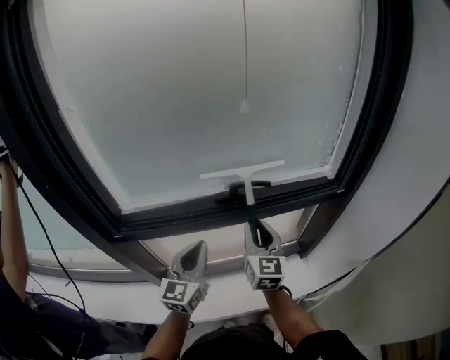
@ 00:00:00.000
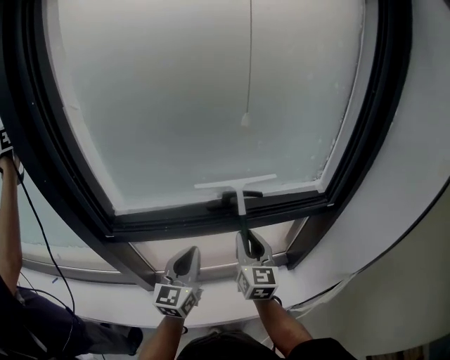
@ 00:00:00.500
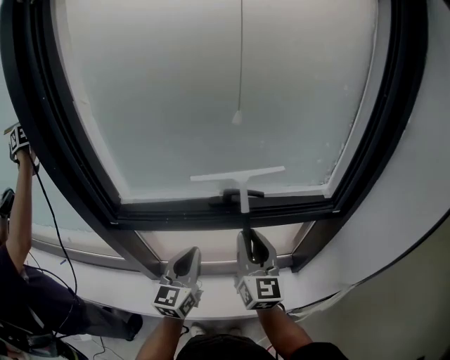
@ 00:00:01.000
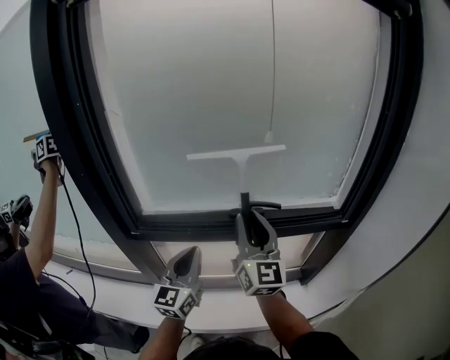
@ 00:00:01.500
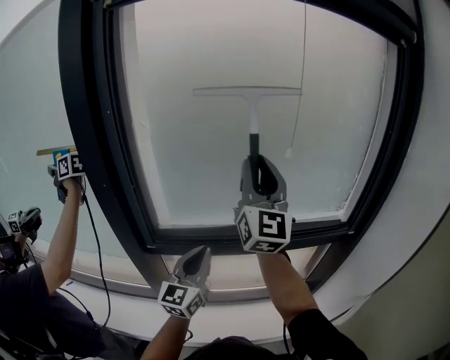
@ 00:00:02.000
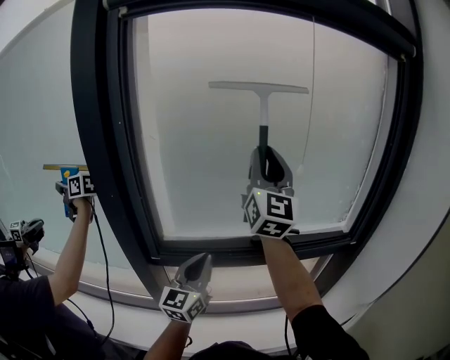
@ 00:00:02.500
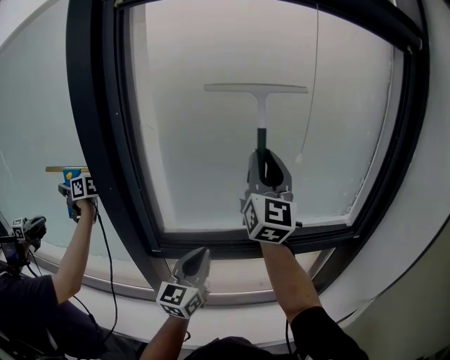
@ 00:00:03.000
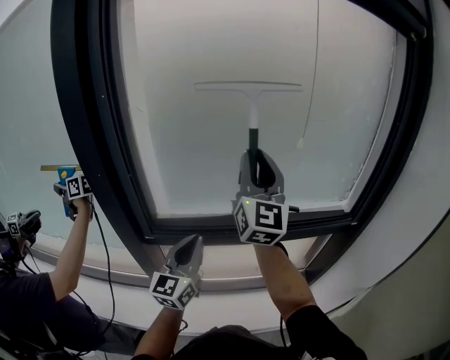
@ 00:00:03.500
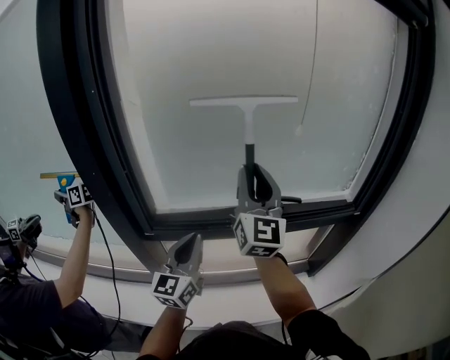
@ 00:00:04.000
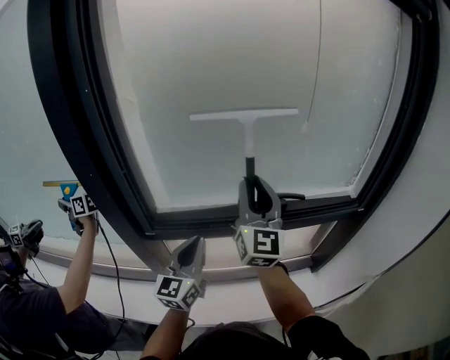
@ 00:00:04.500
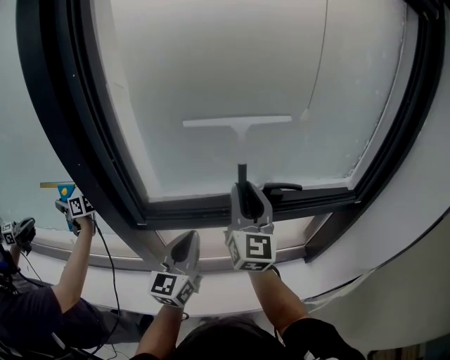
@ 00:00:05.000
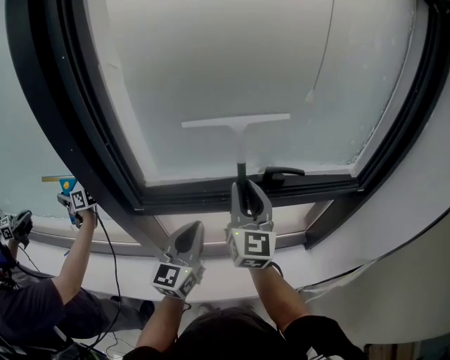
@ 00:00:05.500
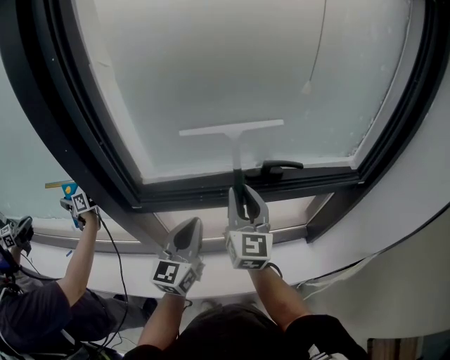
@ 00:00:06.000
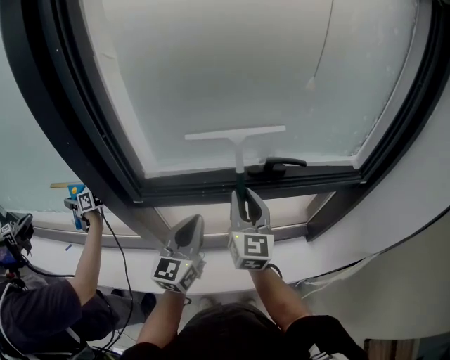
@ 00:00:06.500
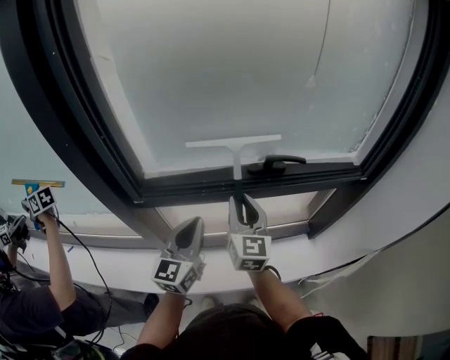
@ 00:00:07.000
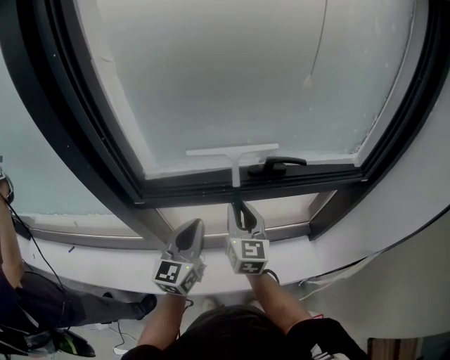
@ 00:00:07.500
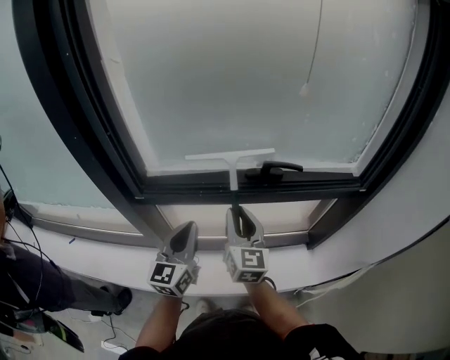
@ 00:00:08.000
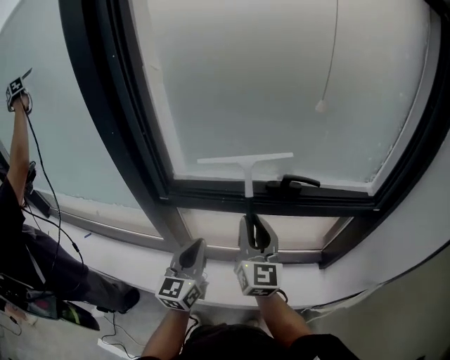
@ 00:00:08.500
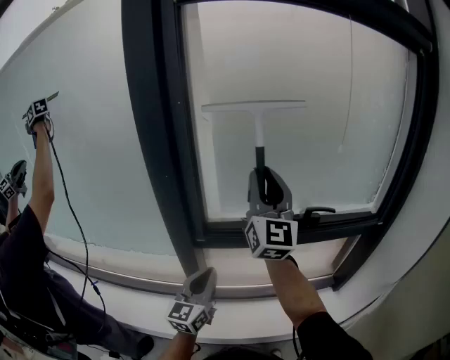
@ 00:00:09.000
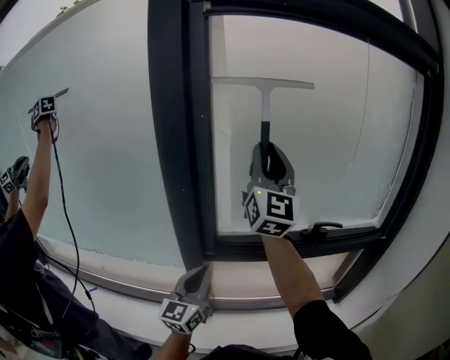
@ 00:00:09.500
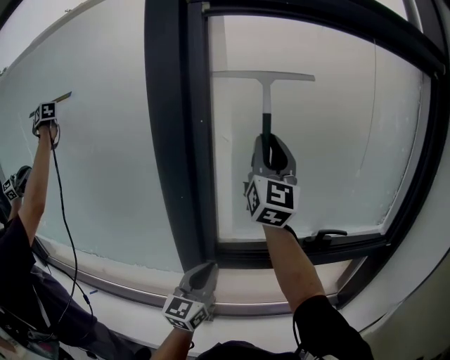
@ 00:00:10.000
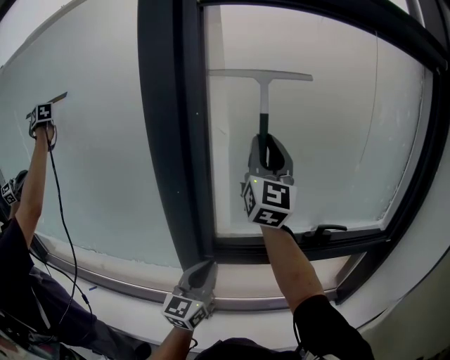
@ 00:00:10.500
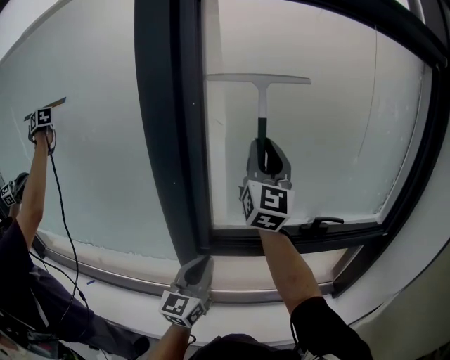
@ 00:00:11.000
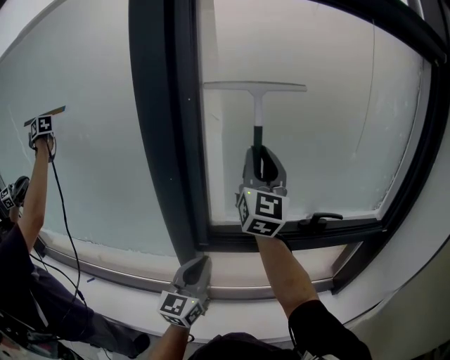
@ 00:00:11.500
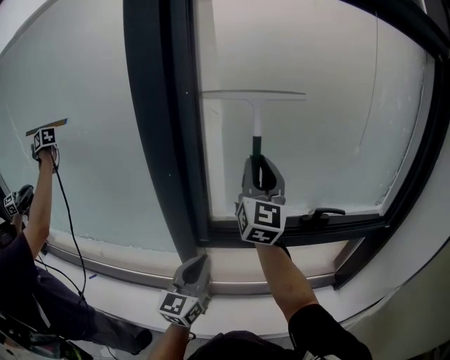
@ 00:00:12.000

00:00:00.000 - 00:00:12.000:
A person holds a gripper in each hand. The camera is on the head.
00:00:00.000 - 00:00:02.000: The left gripper goes about 10 cm upward and to the left; the right gripper moves upward, about 30 cm, and tips its fingers upward by some 30 degrees.
00:00:02.000 - 00:00:04.000: The right gripper travels downward by some 10 cm.
00:00:04.000 - 00:00:06.000: The left gripper goes about 5 cm downward; the right gripper travels downward by some 15 cm.
00:00:06.000 - 00:00:08.000: The right gripper goes approximately 5 cm downward.
00:00:08.000 - 00:00:10.000: The right gripper travels upward by approximately 40 cm, and tips its fingers upward by some 40 degrees; the left gripper is displaced to the left and upward by roughly 15 cm.
00:00:10.000 - 00:00:12.000: The right gripper shifts approximately 10 cm downward.

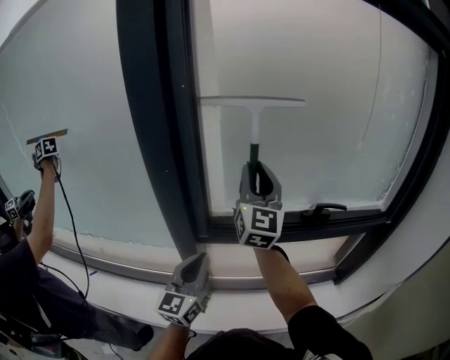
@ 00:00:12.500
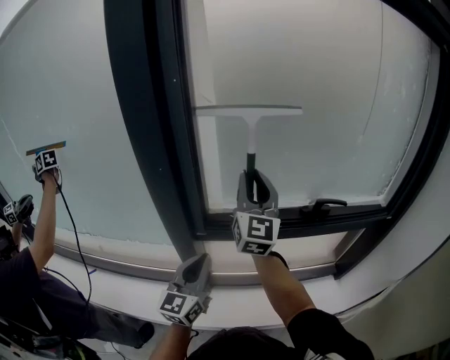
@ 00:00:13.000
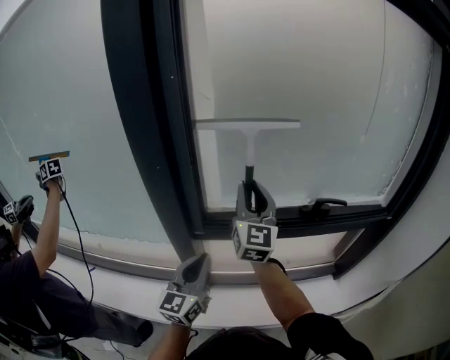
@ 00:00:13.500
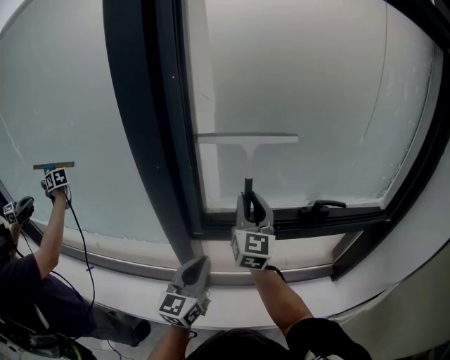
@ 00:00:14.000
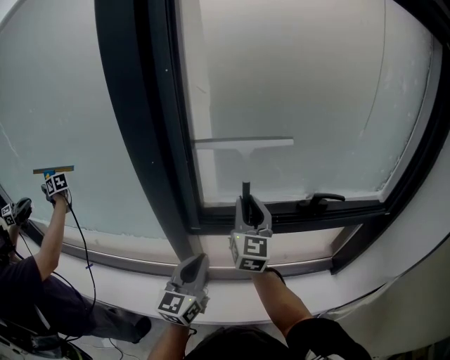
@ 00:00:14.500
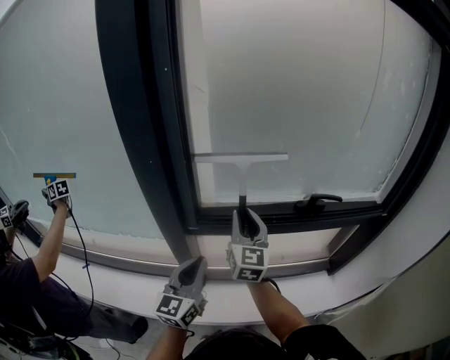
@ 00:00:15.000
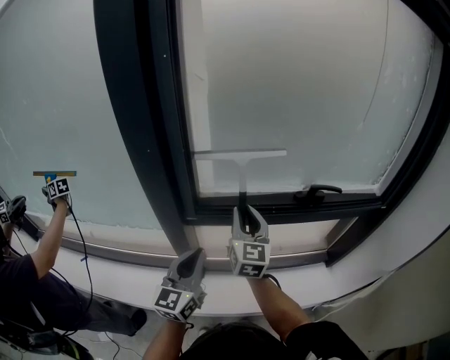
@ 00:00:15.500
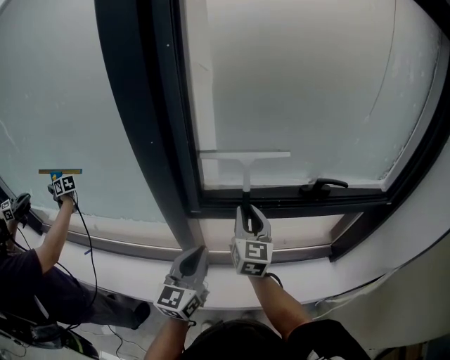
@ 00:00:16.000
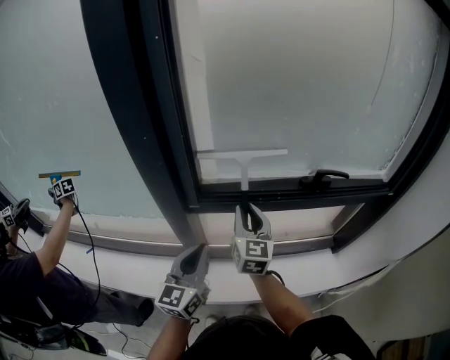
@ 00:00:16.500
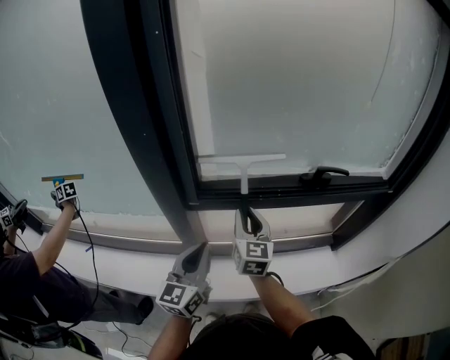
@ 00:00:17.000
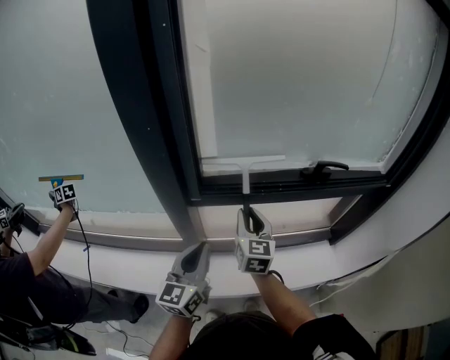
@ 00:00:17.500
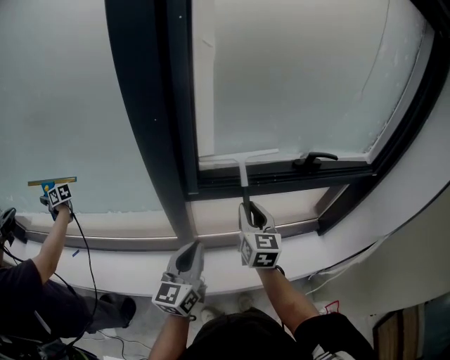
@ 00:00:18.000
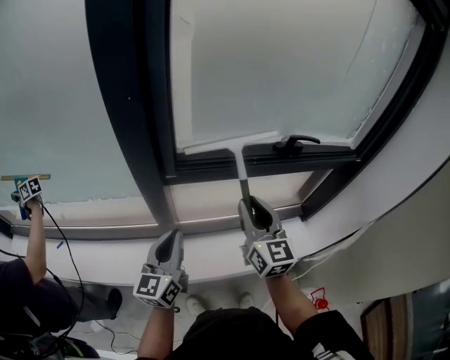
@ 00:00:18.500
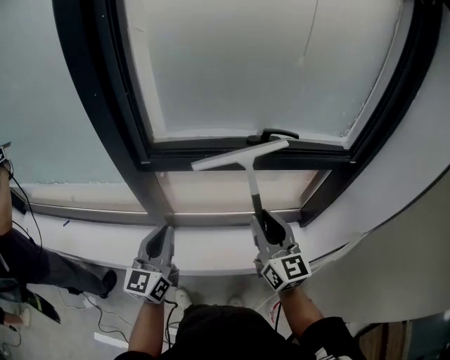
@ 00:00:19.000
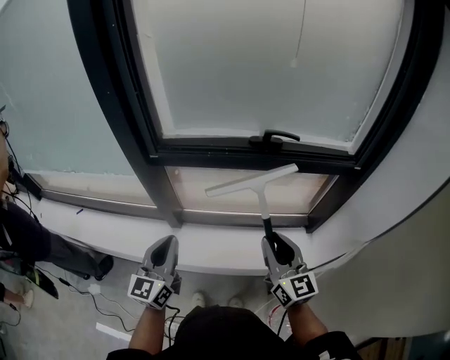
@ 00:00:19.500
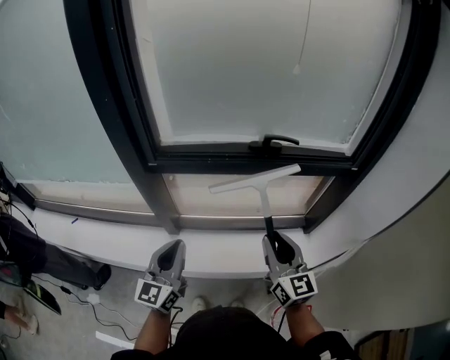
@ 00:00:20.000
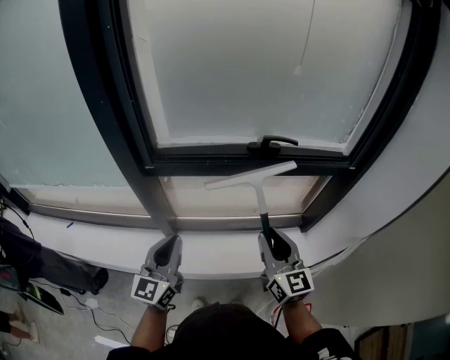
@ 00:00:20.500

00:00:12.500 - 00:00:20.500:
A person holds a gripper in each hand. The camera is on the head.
00:00:12.500 - 00:00:14.500: The right gripper is displaced downward by some 15 cm.
00:00:14.500 - 00:00:16.500: The right gripper heads downward, covering some 10 cm.
00:00:16.500 - 00:00:18.500: The right gripper moves backward and to the right, approximately 10 cm. Meanwhile the left gripper ends up about 5 cm from where it was.
00:00:18.500 - 00:00:20.500: The two grippers go about 15 cm to the right and backward.

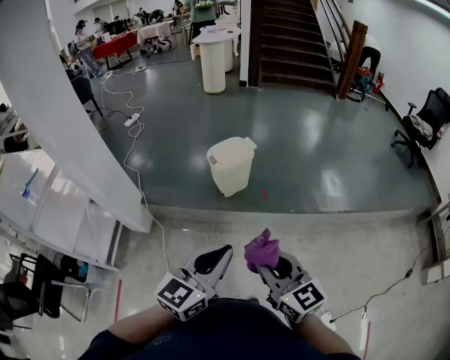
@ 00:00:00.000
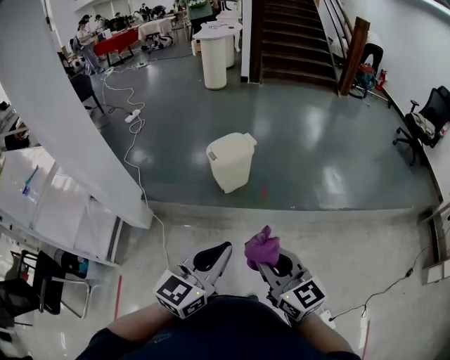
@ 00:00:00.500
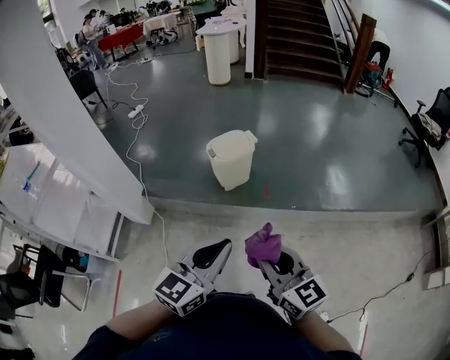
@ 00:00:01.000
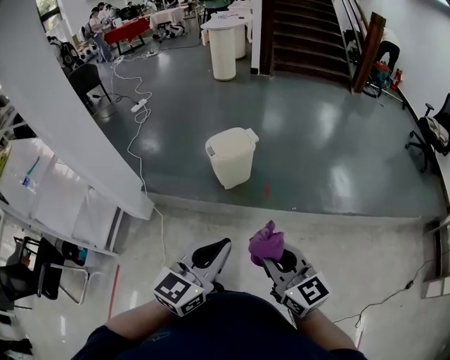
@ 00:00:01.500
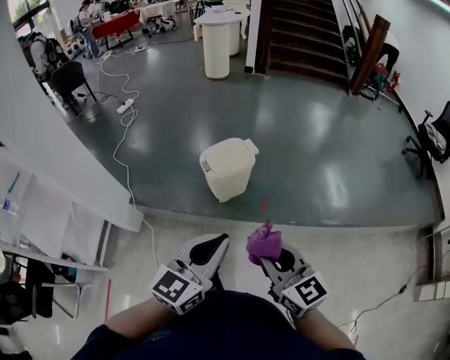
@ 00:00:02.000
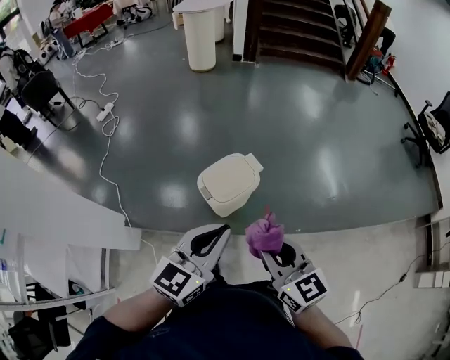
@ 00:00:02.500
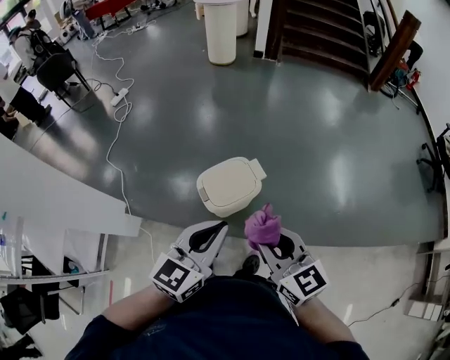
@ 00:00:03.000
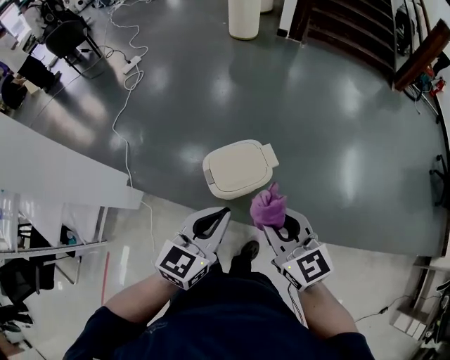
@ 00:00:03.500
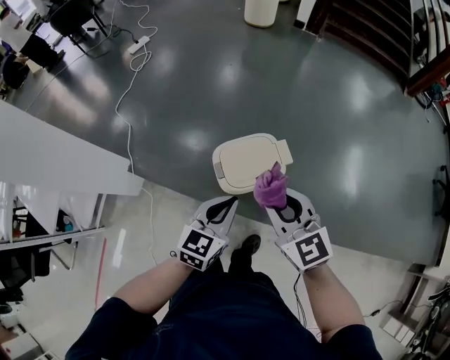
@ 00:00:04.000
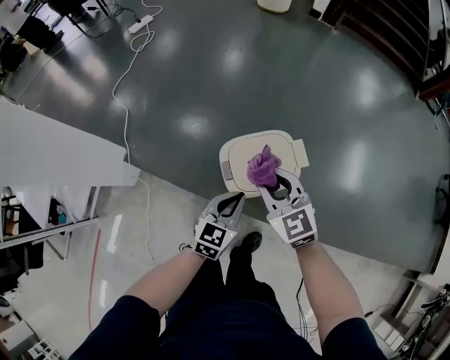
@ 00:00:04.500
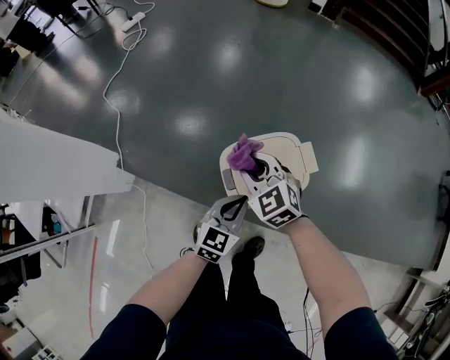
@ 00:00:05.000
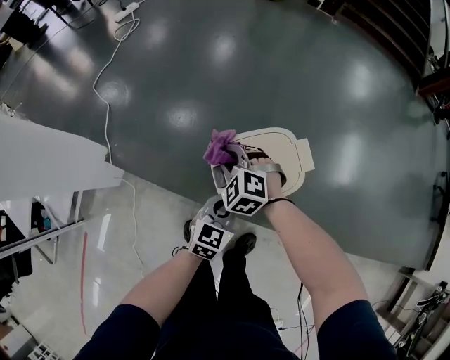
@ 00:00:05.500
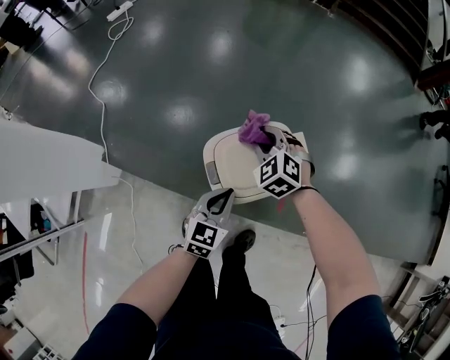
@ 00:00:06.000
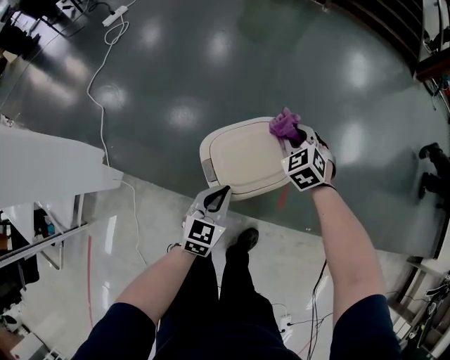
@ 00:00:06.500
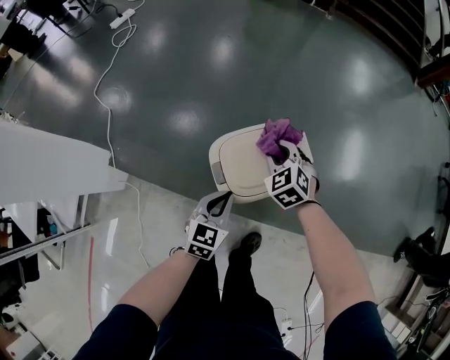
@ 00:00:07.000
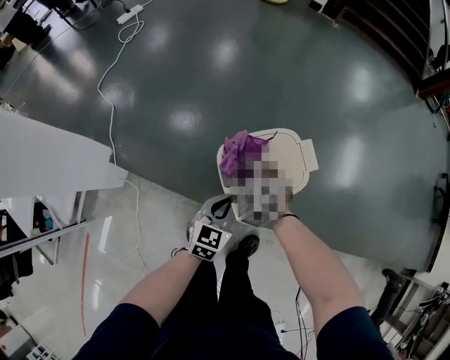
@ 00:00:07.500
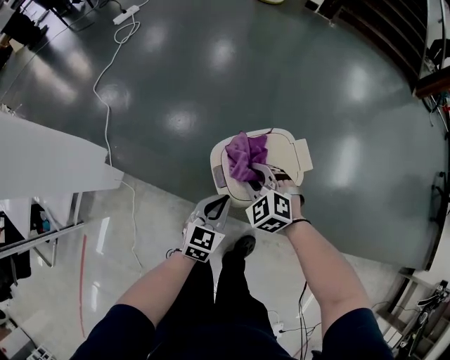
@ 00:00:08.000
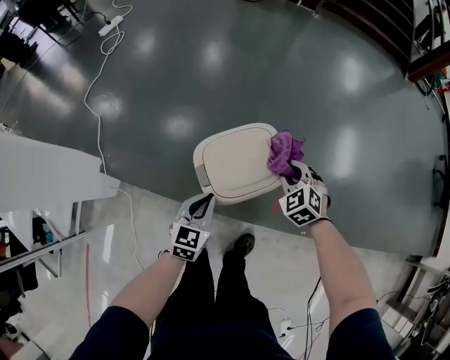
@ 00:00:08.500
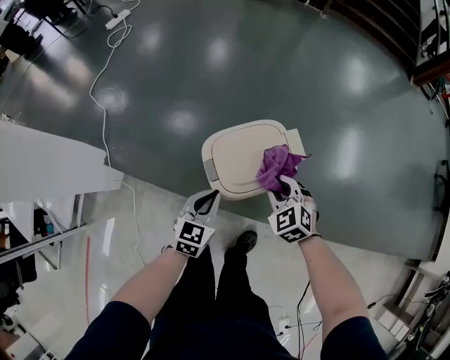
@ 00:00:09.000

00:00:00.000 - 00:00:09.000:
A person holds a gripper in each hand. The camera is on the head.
00:00:00.000 - 00:00:02.000: The two grippers go roughly 20 cm forward.
00:00:02.000 - 00:00:04.500: Both grippers are carried forward, roughly 50 cm. The left gripper heads downward, covering about 30 cm, and turns by approximately 30 degrees, while the right gripper travels downward by roughly 20 cm, and swivels about 30 degrees.
00:00:04.500 - 00:00:07.000: The left gripper shifts about 10 cm downward. The right gripper goes left and right, approximately 20 cm each way, reversing 2 times, and changes its angle by roughly 30 degrees.
00:00:07.000 - 00:00:09.000: The right gripper swings left and right, approximately 20 cm each way, with 2 reversals.
